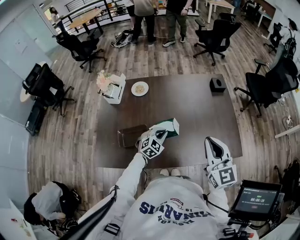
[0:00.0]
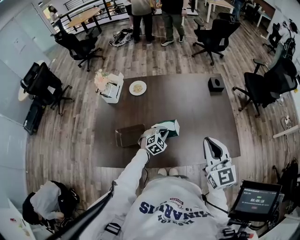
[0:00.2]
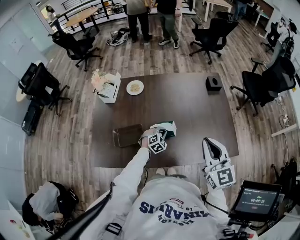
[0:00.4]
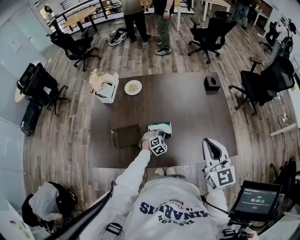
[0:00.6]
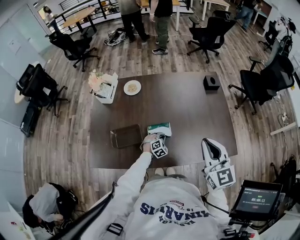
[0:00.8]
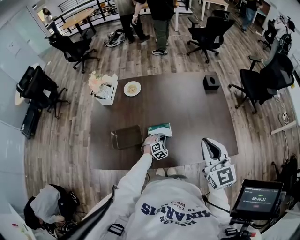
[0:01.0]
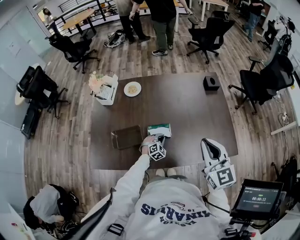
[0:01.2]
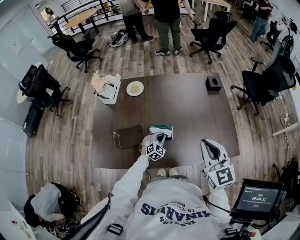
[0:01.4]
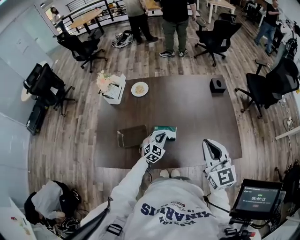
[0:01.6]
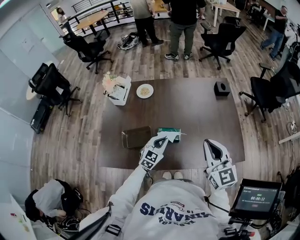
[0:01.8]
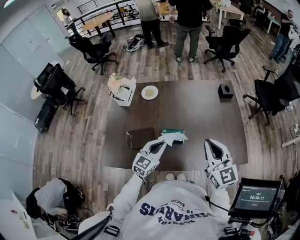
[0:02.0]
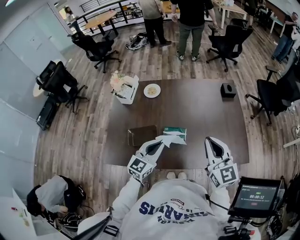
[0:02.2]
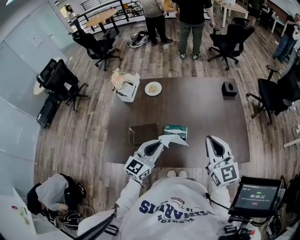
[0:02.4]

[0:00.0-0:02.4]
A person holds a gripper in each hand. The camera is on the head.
0:00.0 to 0:01.2: The left gripper travels downward by approximately 15 cm.
0:01.2 to 0:02.4: The left gripper heads upward, covering approximately 35 cm, and points its fingers roughly 40 degrees further upward.

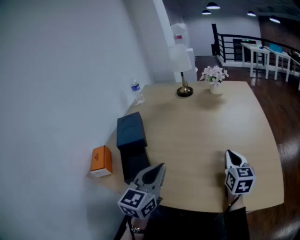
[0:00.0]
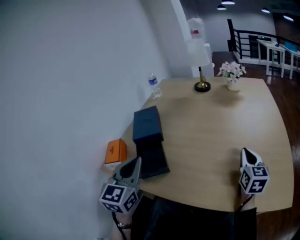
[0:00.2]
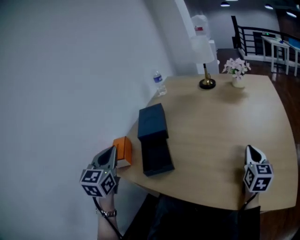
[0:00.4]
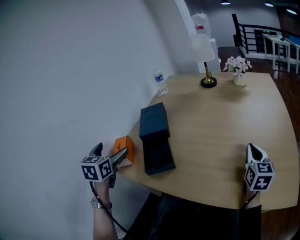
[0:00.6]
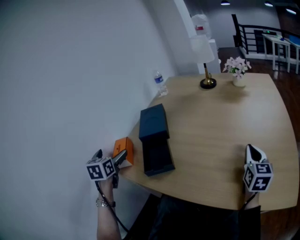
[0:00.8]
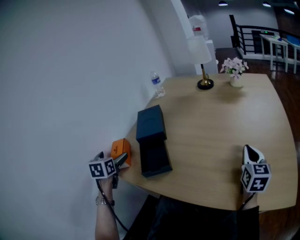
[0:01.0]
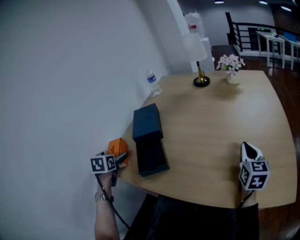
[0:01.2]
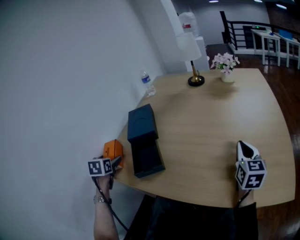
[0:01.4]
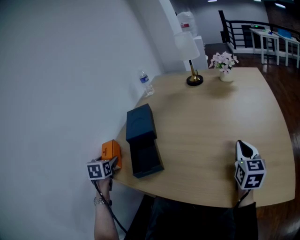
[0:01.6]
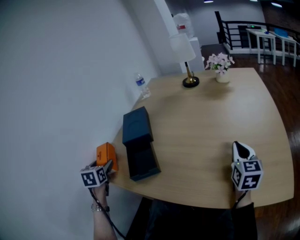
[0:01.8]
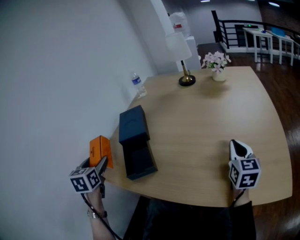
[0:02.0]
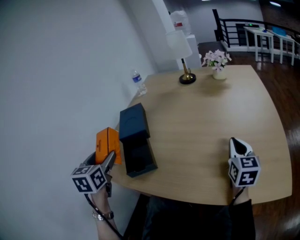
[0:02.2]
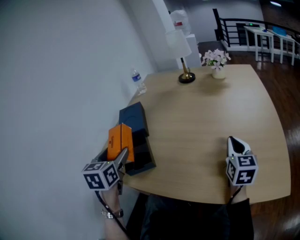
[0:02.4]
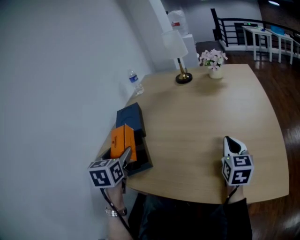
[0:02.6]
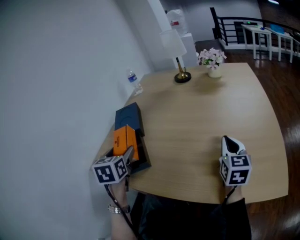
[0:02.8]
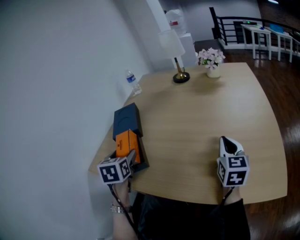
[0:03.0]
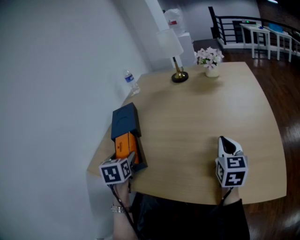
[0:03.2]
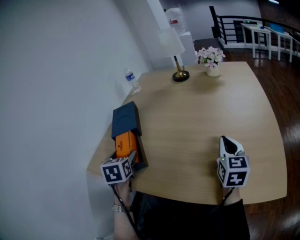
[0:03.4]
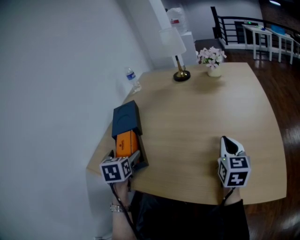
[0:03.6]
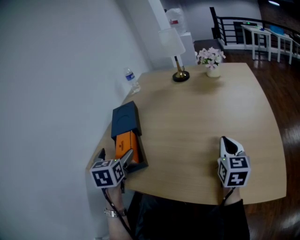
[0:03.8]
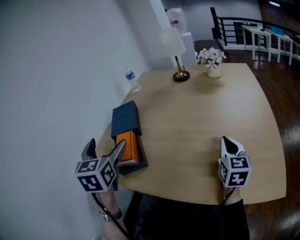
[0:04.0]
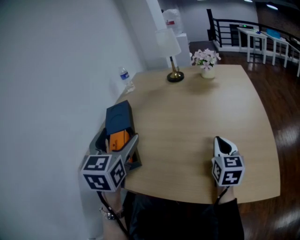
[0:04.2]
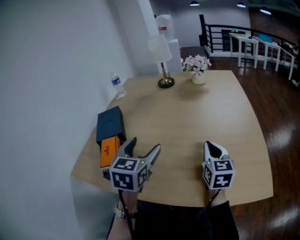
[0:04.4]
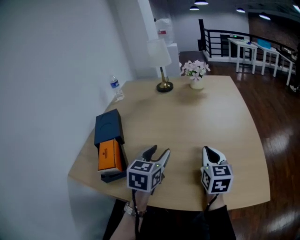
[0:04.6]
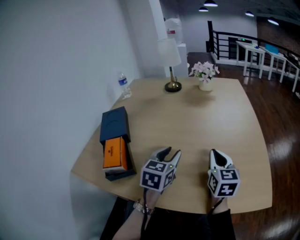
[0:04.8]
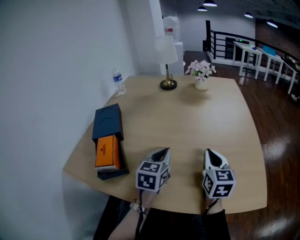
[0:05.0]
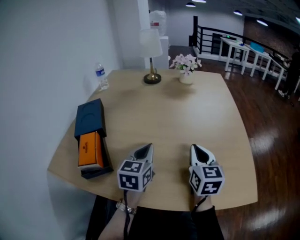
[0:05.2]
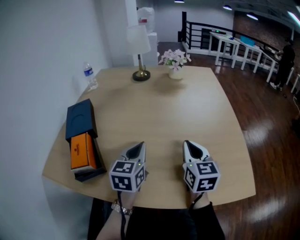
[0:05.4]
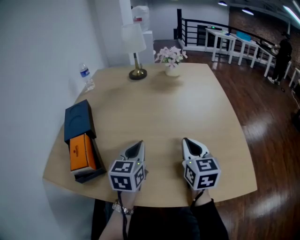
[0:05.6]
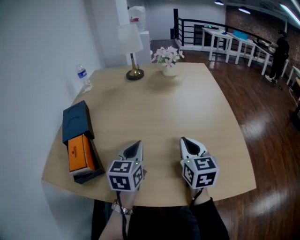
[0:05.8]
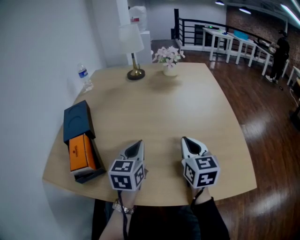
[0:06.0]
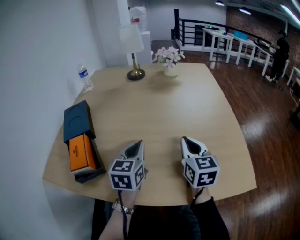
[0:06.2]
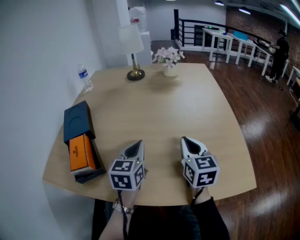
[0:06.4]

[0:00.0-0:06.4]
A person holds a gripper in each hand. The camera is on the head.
0:00.0 to 0:01.6: The left gripper heads to the left, covering roughly 30 cm, turns by some 50 degrees, and opens its fingers.
0:01.6 to 0:03.2: The left gripper goes about 20 cm to the right.
0:03.2 to 0:04.8: The left gripper travels to the right by some 25 cm, and turns by about 40 degrees.
0:04.8 to 0:06.4: There are only small adjustments of the grippers.

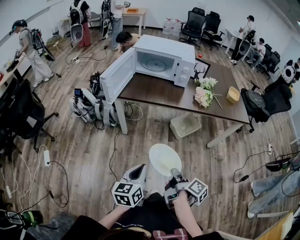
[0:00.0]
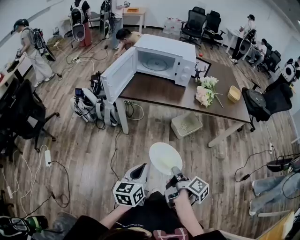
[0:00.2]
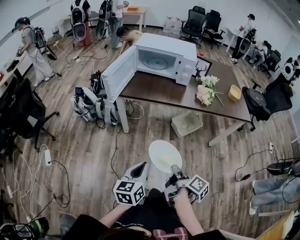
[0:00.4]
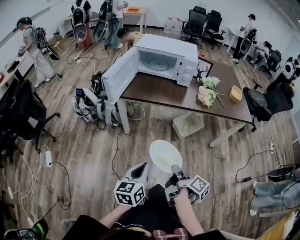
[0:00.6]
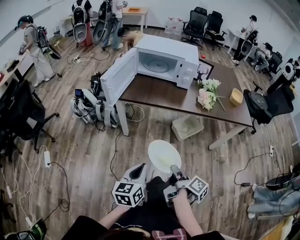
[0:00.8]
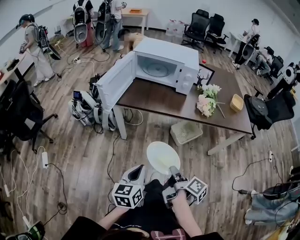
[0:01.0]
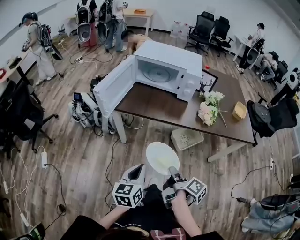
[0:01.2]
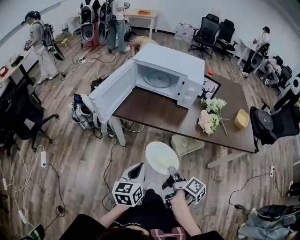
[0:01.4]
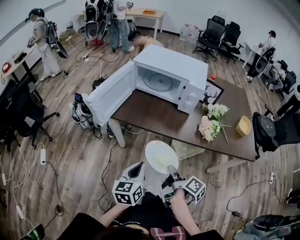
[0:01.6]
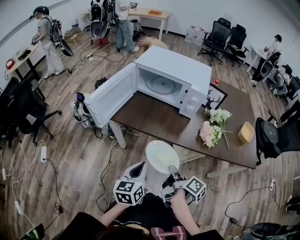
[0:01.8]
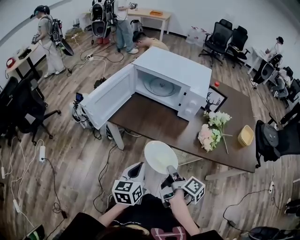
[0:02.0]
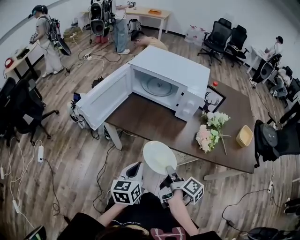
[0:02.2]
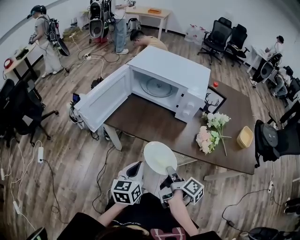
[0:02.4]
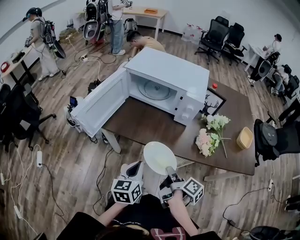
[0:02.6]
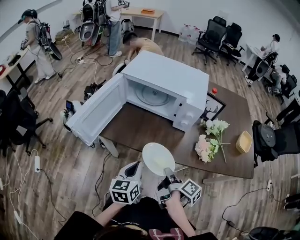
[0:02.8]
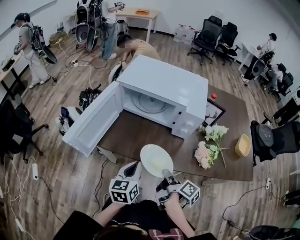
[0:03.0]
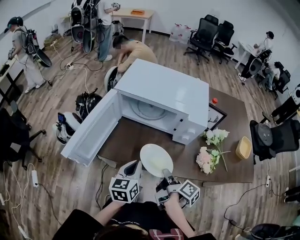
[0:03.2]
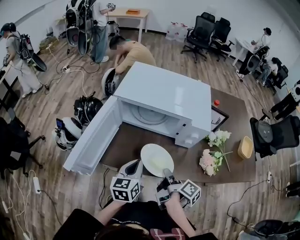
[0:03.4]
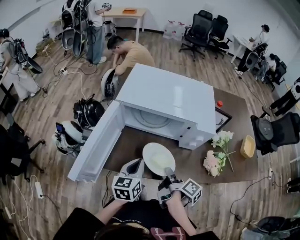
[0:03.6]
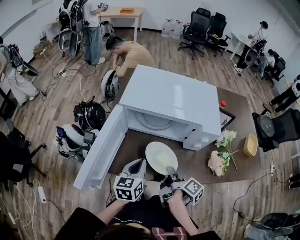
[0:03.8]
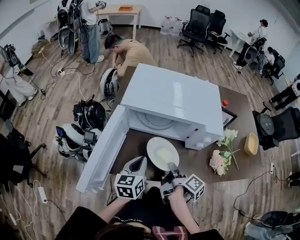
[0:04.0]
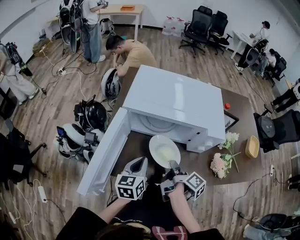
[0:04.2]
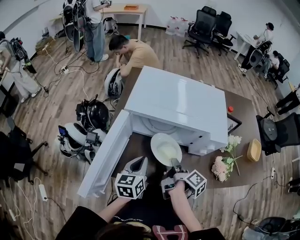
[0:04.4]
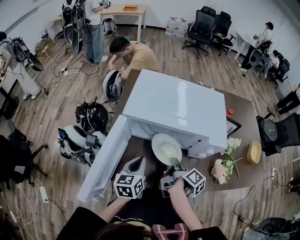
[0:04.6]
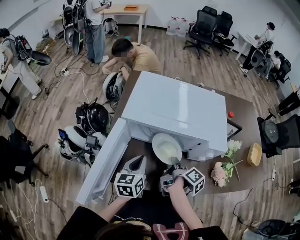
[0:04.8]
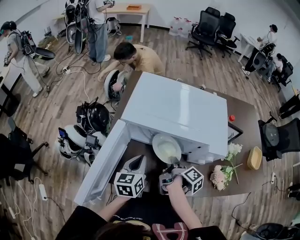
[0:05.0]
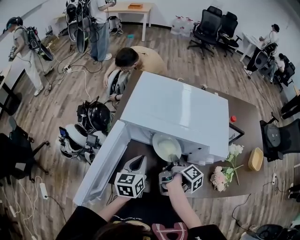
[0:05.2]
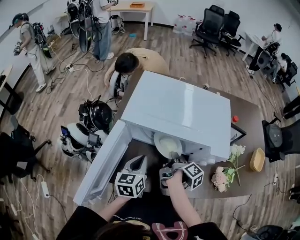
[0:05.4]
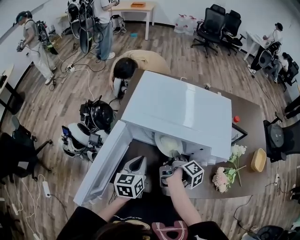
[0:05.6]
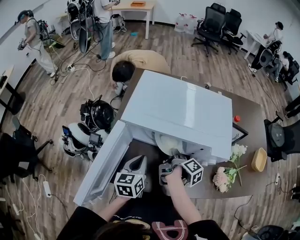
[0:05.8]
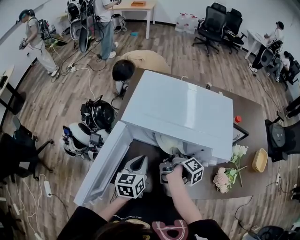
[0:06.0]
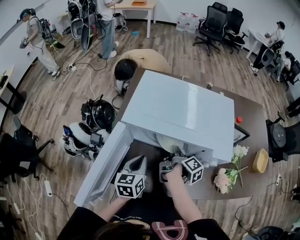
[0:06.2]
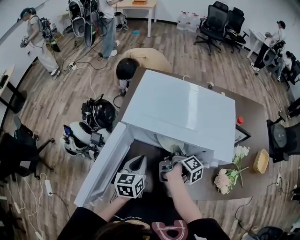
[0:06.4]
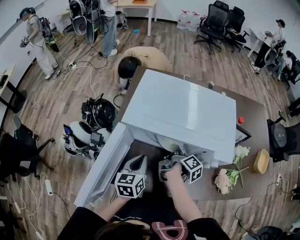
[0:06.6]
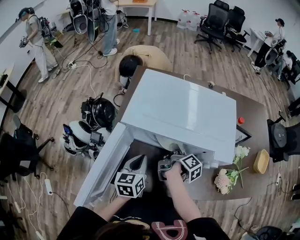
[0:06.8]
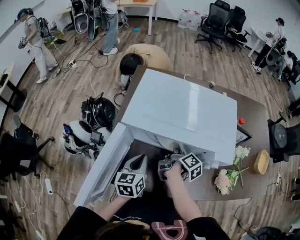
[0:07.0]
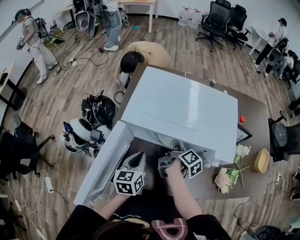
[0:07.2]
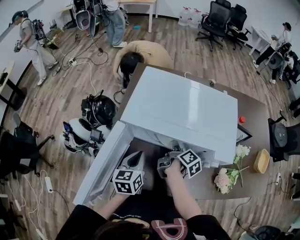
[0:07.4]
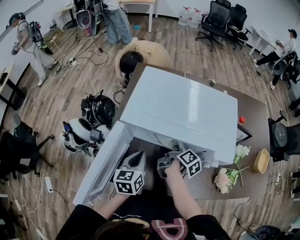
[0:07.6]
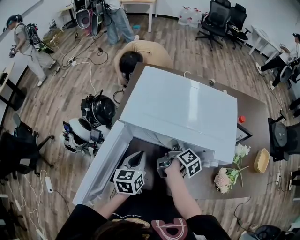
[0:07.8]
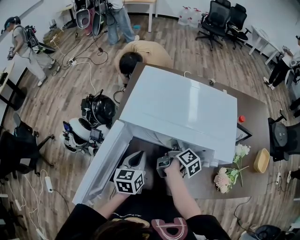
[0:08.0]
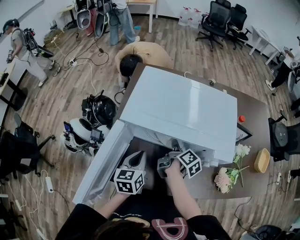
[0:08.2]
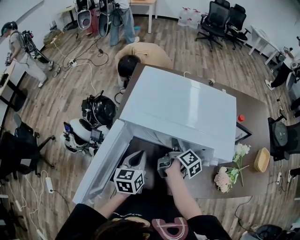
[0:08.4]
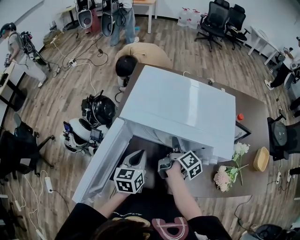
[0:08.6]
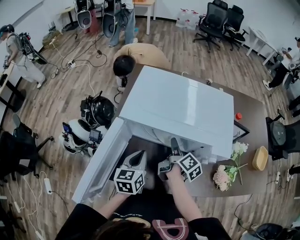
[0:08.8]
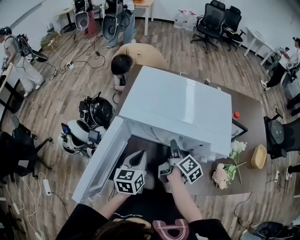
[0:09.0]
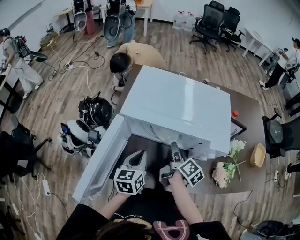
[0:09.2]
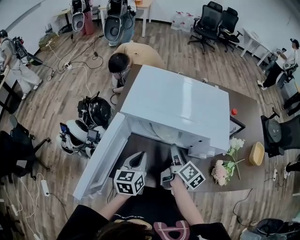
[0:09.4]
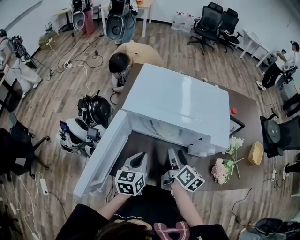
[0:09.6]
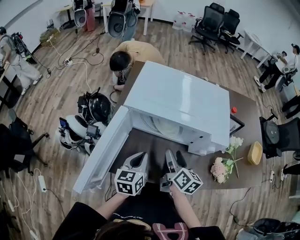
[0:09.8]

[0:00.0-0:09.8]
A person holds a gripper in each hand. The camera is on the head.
0:00.0 to 0:01.4: The left gripper changes place by roughly 20 cm.
0:01.4 to 0:02.8: The left gripper ends up some 20 cm from where it was.
0:02.8 to 0:04.2: The left gripper moves approximately 20 cm.
0:04.2 to 0:05.6: The left gripper shifts by roughly 5 cm.
0:08.4 to 0:09.8: The left gripper ends up about 5 cm from where it was.

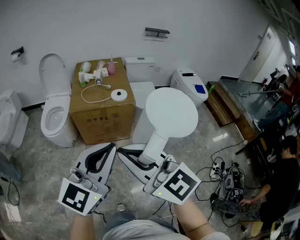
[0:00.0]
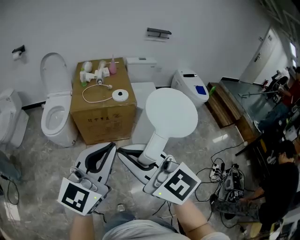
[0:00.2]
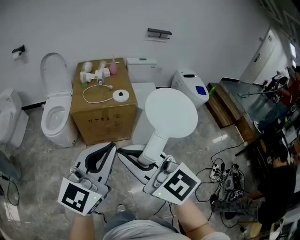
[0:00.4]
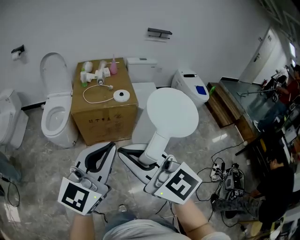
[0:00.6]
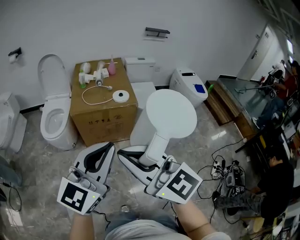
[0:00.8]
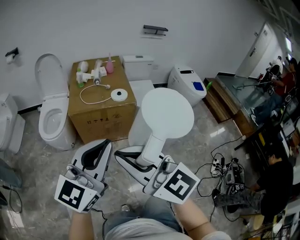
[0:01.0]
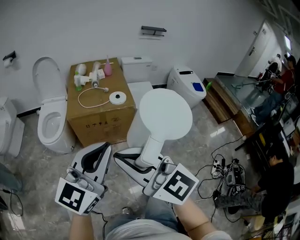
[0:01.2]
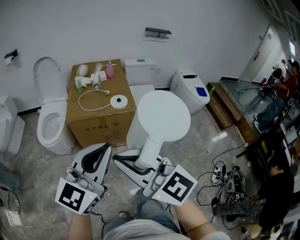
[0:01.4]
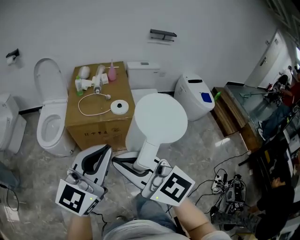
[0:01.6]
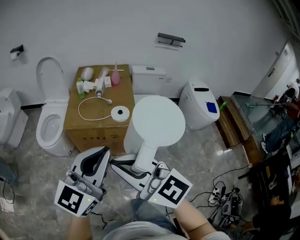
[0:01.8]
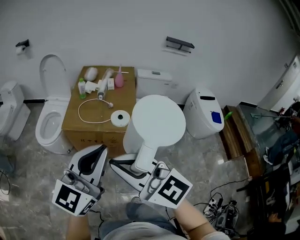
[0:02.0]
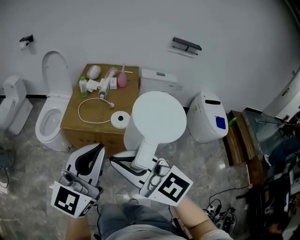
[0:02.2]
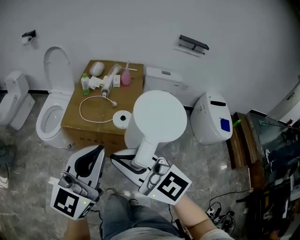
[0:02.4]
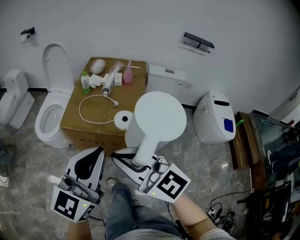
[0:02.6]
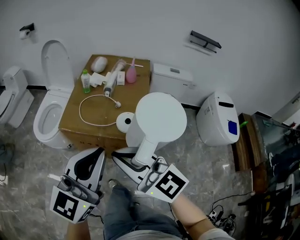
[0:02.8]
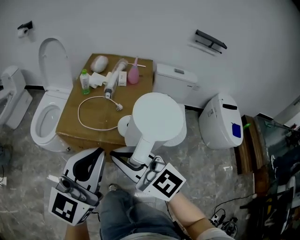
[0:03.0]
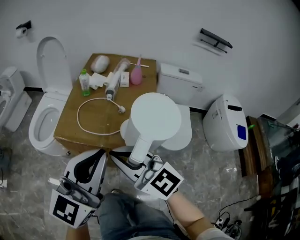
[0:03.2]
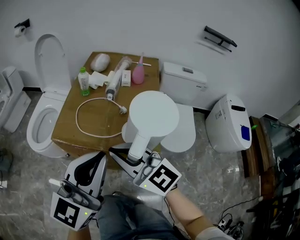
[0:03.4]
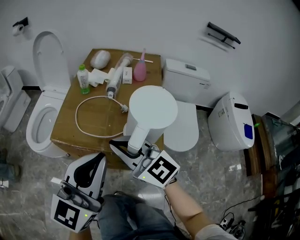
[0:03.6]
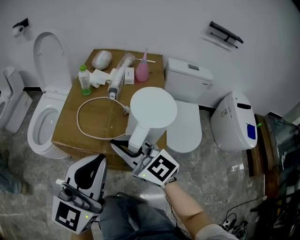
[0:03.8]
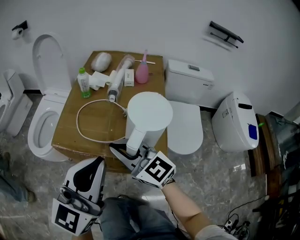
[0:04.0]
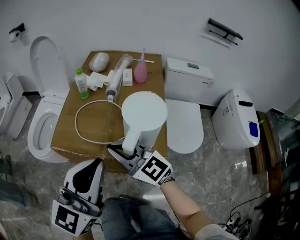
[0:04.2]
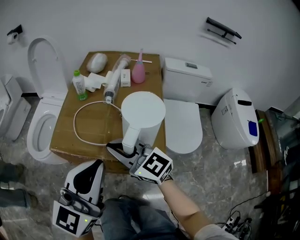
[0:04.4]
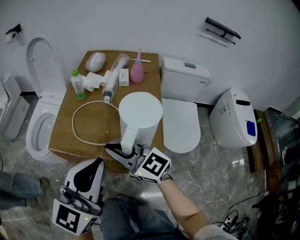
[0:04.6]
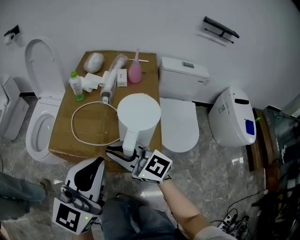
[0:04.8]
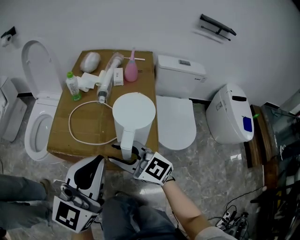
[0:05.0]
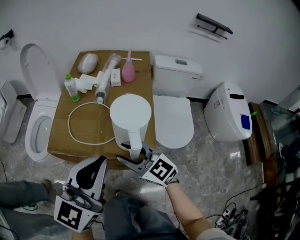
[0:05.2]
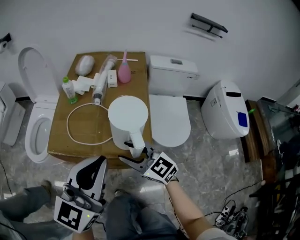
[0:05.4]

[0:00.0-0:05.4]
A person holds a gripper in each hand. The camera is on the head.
0:00.0 to 0:01.4: Both grippers travel together forward, about 10 cm.
0:01.4 to 0:02.8: The two grippers go roughly 30 cm forward and to the right. The left gripper changes its angle by approximately 20 degrees.
0:02.8 to 0:04.0: The right gripper is displaced forward and downward by roughly 25 cm. Meanwhile the left gripper shifts some 20 cm downward and forward.
0:04.0 to 0:05.4: The right gripper goes about 10 cm to the right, and opens. The left gripper moves to the right, some 5 cm.
